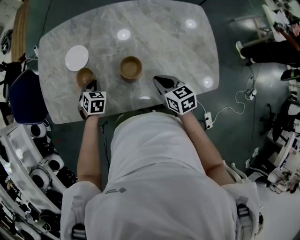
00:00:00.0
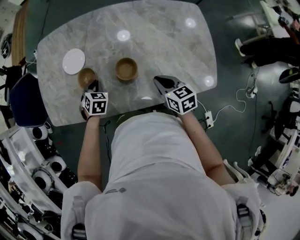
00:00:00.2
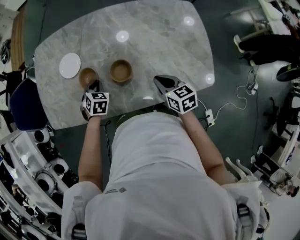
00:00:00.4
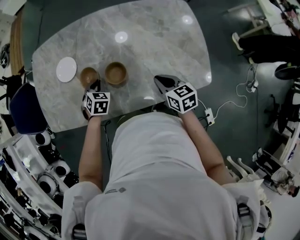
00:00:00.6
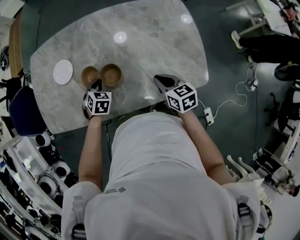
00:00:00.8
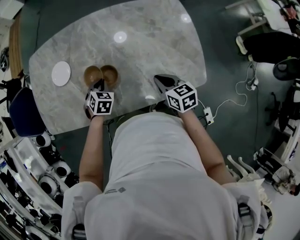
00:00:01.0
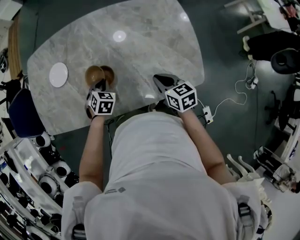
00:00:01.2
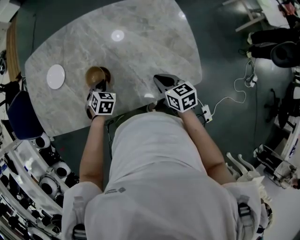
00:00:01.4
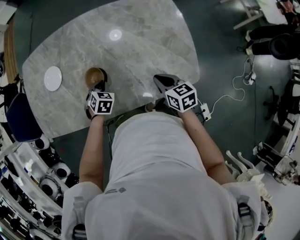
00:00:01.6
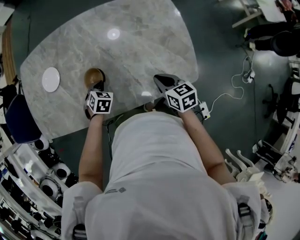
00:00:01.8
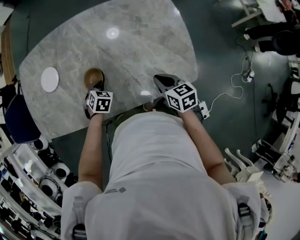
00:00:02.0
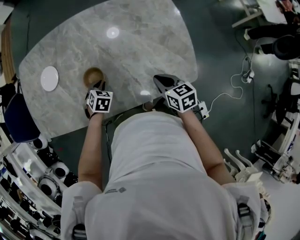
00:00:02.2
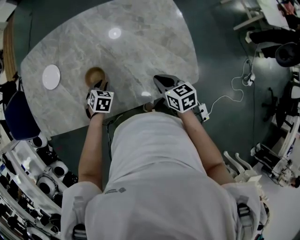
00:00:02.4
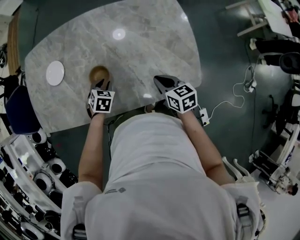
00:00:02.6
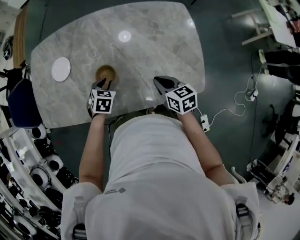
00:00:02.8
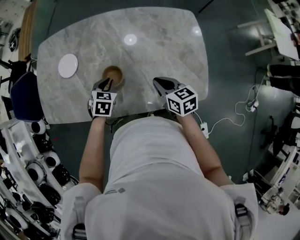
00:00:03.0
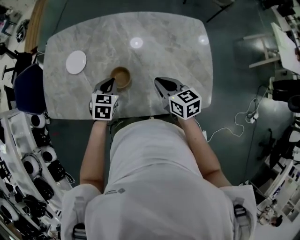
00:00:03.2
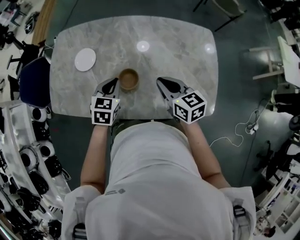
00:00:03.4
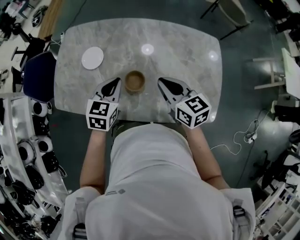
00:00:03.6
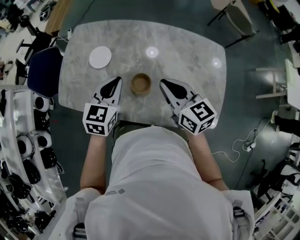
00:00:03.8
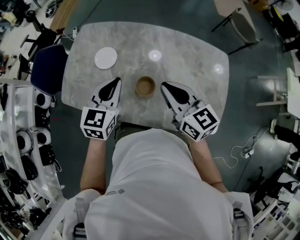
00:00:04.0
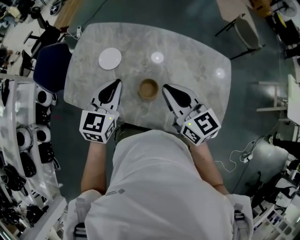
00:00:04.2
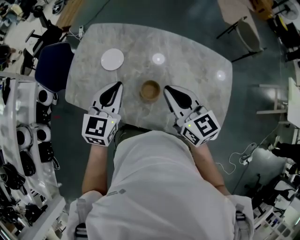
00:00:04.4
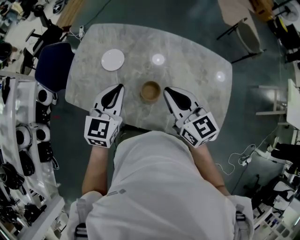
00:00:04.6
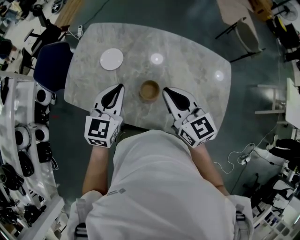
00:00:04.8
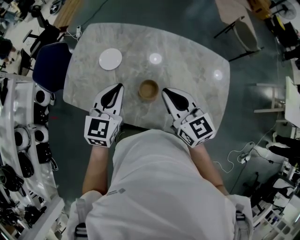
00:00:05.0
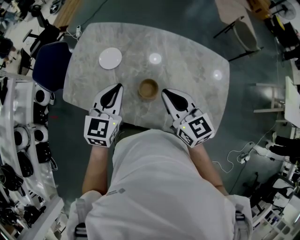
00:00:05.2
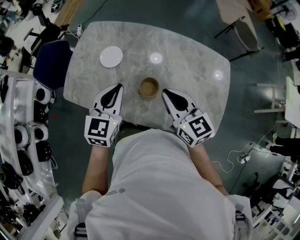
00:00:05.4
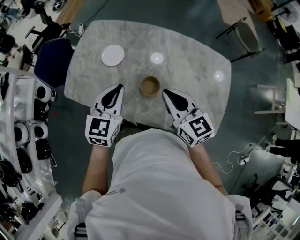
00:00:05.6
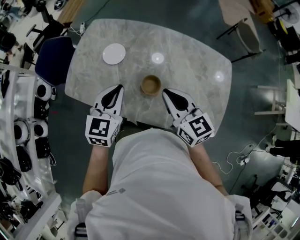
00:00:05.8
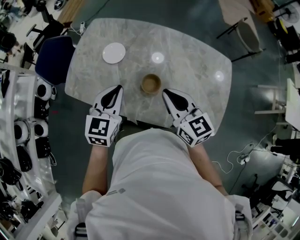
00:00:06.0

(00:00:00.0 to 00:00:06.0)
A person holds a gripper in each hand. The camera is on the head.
00:00:00.0 - 00:00:01.6: Both grippers travel together to the right, some 20 cm.
00:00:01.6 - 00:00:03.0: The left gripper heads upward, covering about 5 cm, while the right gripper moves to the left, some 5 cm.
00:00:03.0 - 00:00:04.4: The two grippers go about 25 cm upward and to the left. The right gripper turns by some 30 degrees. Meanwhile the left gripper tilts its fingers roughly 30 degrees upward.
00:00:04.4 - 00:00:06.0: The left gripper changes place by some 5 cm. Meanwhile the right gripper changes place by some 5 cm.

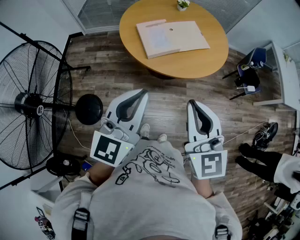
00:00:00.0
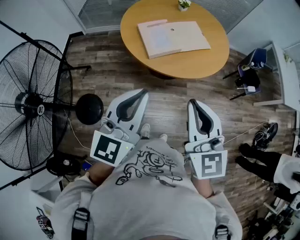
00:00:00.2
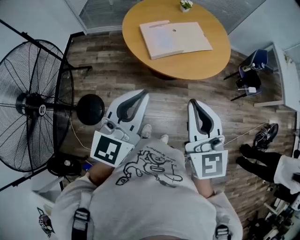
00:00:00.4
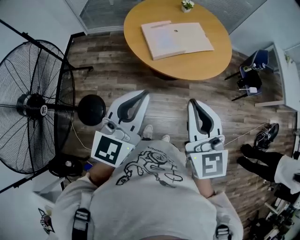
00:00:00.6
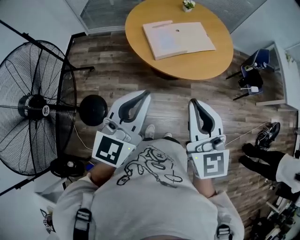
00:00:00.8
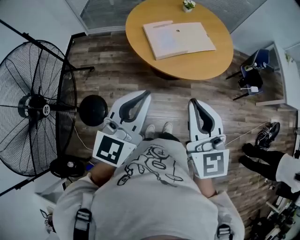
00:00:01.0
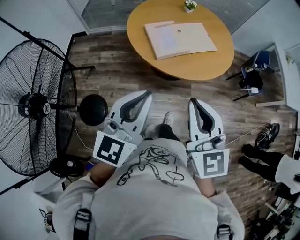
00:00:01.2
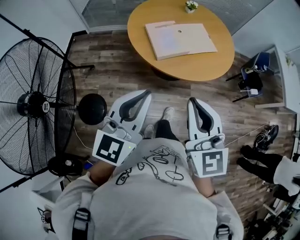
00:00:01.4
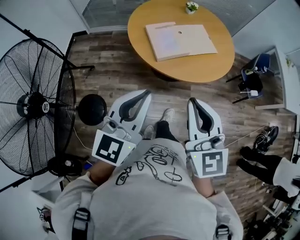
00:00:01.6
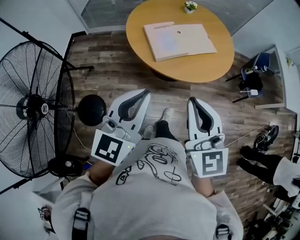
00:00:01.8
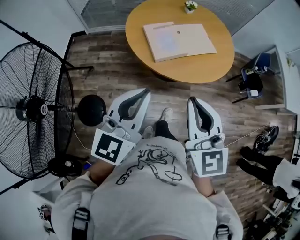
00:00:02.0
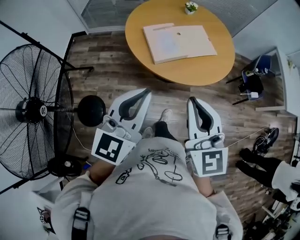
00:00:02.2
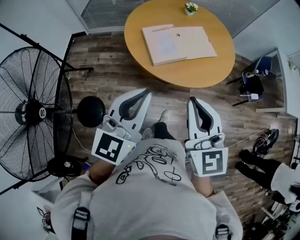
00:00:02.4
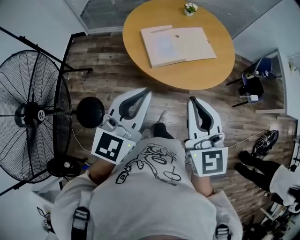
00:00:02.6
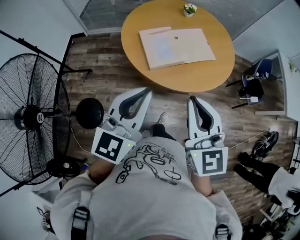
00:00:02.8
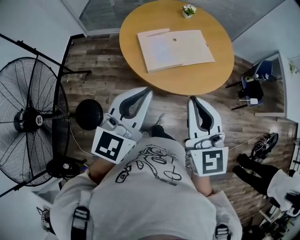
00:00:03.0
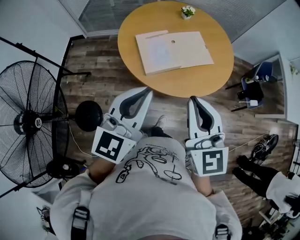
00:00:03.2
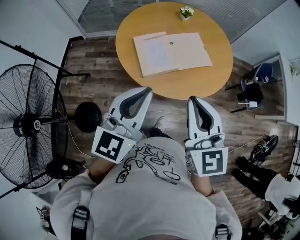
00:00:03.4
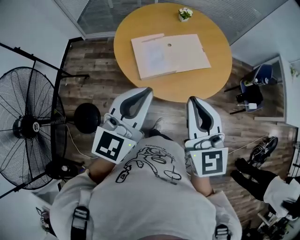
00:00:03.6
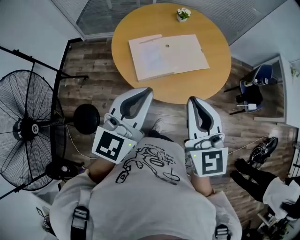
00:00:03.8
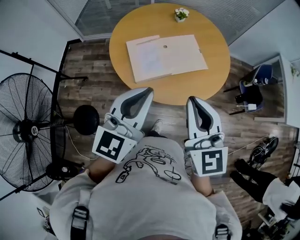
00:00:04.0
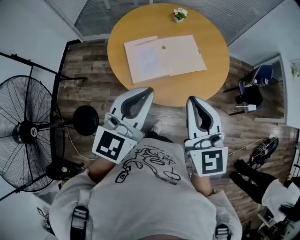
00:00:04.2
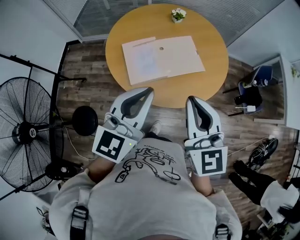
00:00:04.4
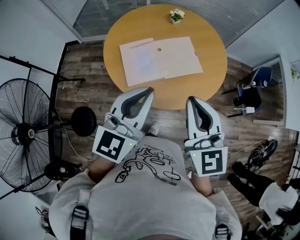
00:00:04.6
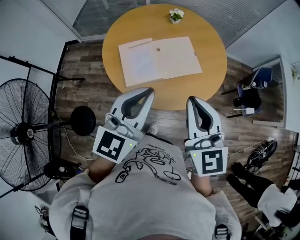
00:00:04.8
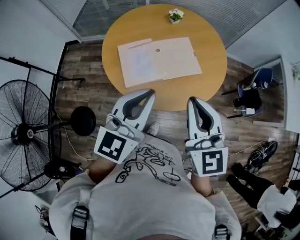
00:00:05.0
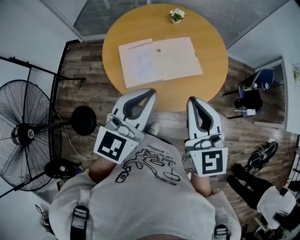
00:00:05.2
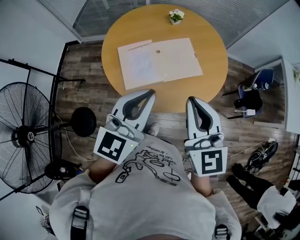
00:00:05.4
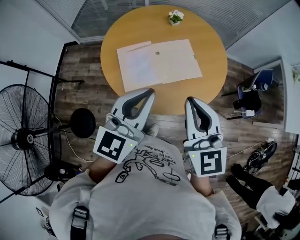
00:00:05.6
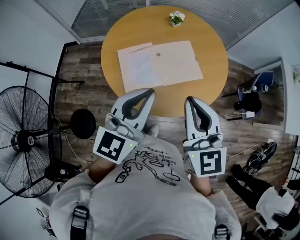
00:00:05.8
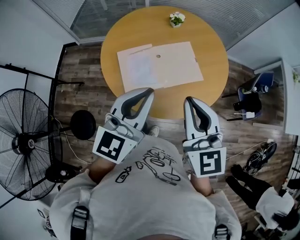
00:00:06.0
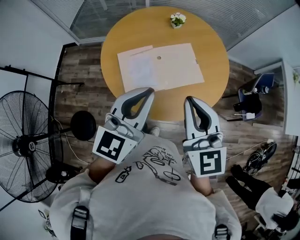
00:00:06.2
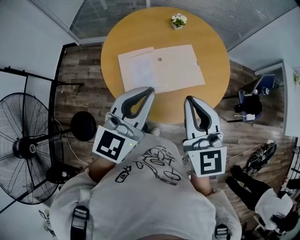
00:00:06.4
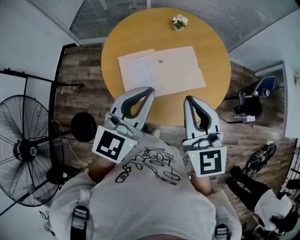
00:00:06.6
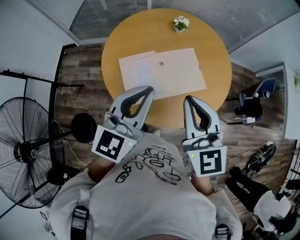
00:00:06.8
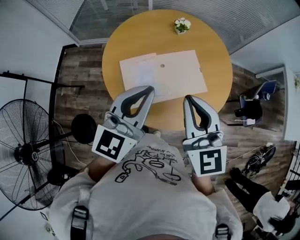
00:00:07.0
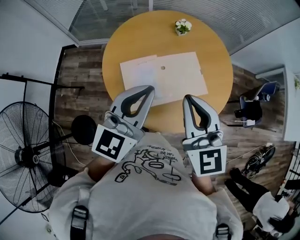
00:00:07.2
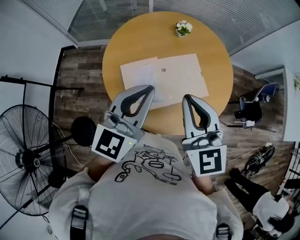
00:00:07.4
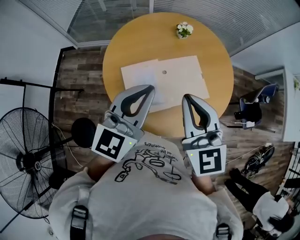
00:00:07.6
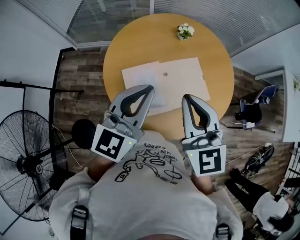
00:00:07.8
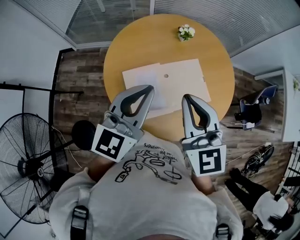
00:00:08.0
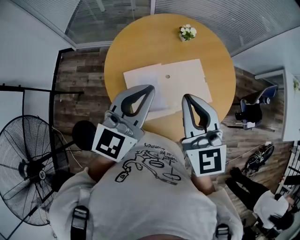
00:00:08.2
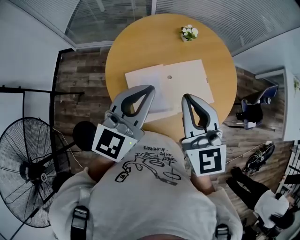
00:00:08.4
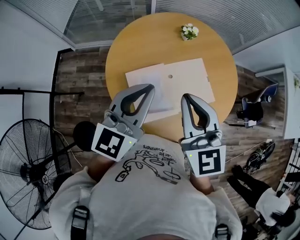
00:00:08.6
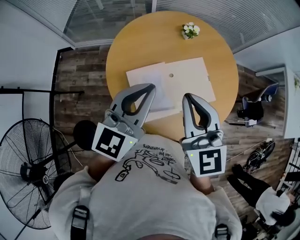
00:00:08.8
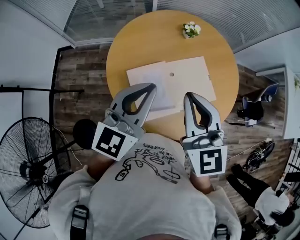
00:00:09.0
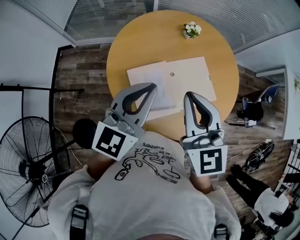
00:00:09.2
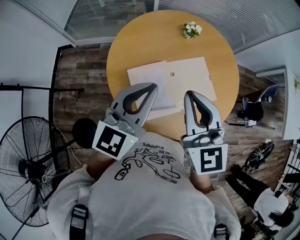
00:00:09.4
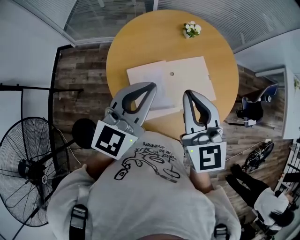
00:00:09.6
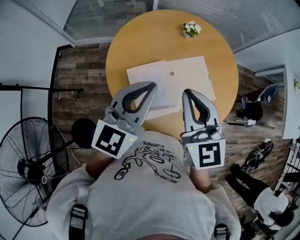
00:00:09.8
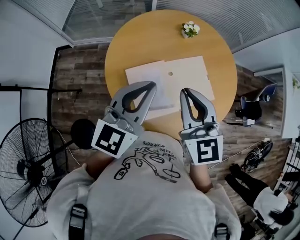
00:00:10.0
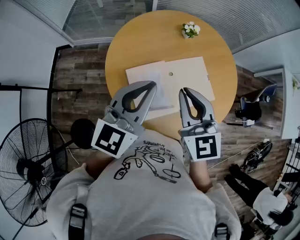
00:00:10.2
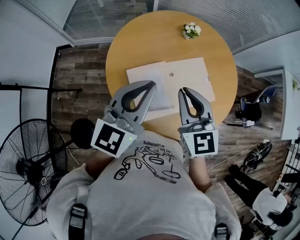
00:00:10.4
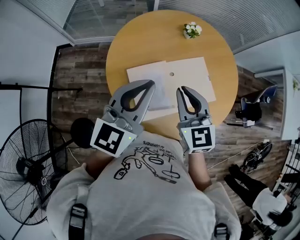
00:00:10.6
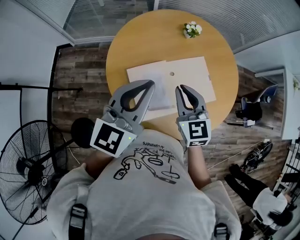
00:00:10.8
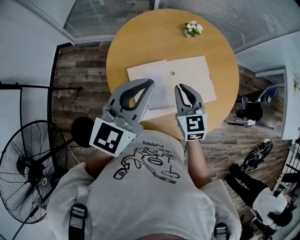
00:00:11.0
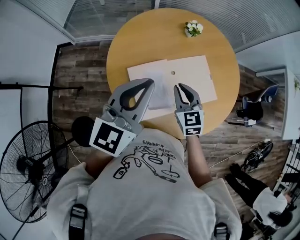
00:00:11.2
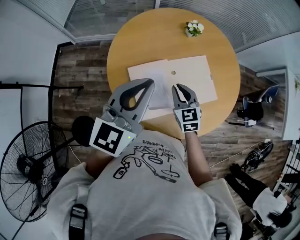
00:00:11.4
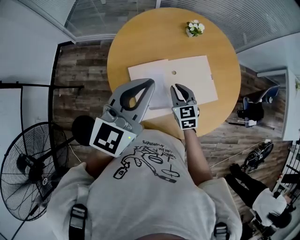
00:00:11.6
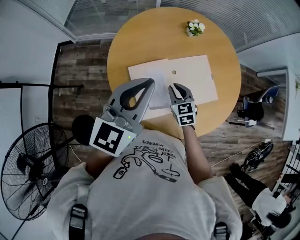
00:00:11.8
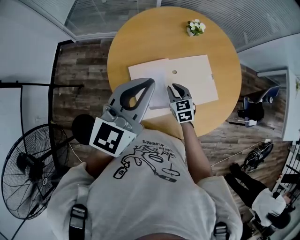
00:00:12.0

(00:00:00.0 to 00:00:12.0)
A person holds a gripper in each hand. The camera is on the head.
00:00:00.0 - 00:00:01.6: The two grippers go roughly 5 cm to the left.
00:00:01.6 - 00:00:03.0: The grippers both shift forward and to the right by about 15 cm.
00:00:03.0 - 00:00:04.4: Both grippers move forward and to the right, approximately 15 cm.
00:00:04.4 - 00:00:06.0: Both grippers move forward, roughly 10 cm.
00:00:06.0 - 00:00:07.6: The grippers both shift forward and to the left by approximately 20 cm.
00:00:07.6 - 00:00:09.0: The grippers both shift to the left by roughly 5 cm.
00:00:09.0 - 00:00:10.4: The right gripper travels downward by approximately 5 cm.
00:00:10.4 - 00:00:12.0: The right gripper is displaced downward by roughly 30 cm, and changes its angle by roughly 30 degrees.

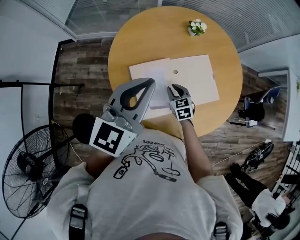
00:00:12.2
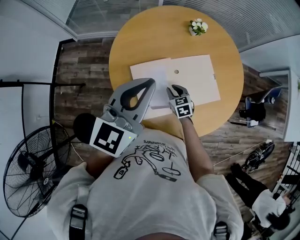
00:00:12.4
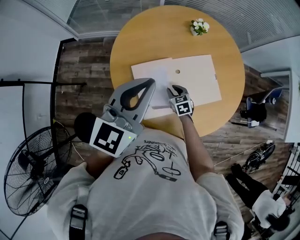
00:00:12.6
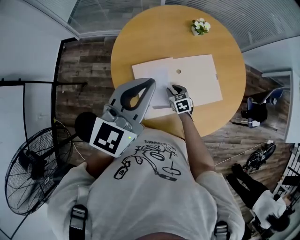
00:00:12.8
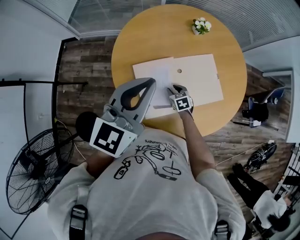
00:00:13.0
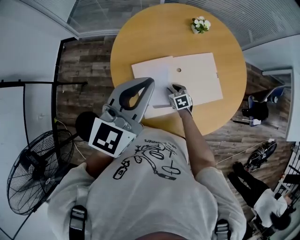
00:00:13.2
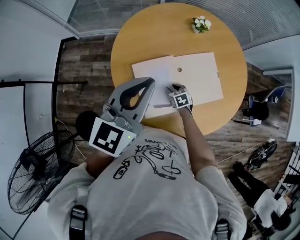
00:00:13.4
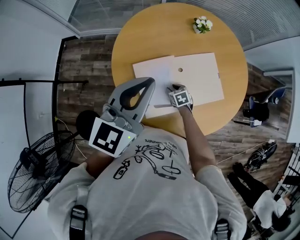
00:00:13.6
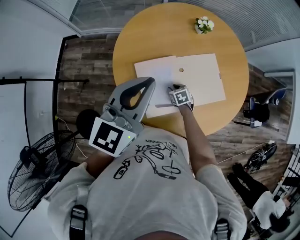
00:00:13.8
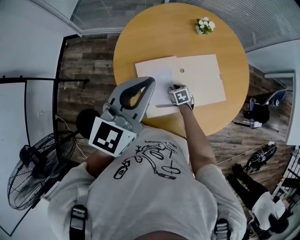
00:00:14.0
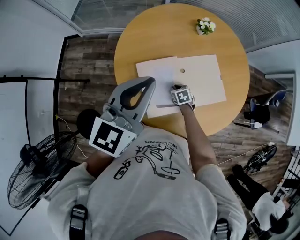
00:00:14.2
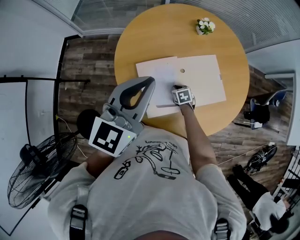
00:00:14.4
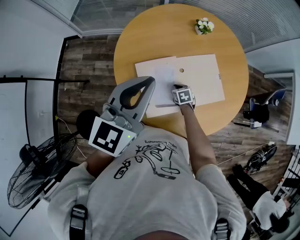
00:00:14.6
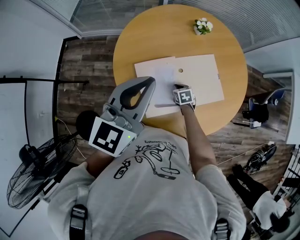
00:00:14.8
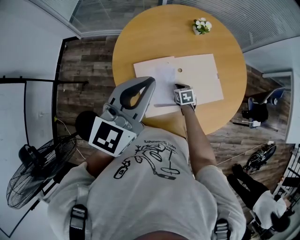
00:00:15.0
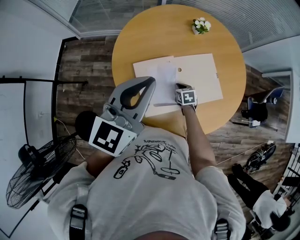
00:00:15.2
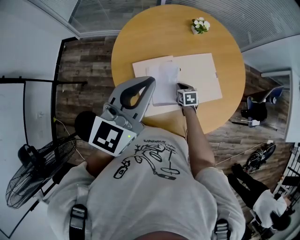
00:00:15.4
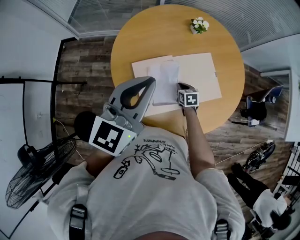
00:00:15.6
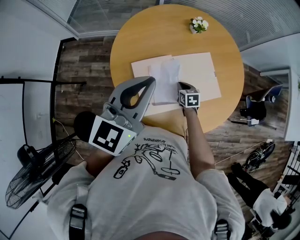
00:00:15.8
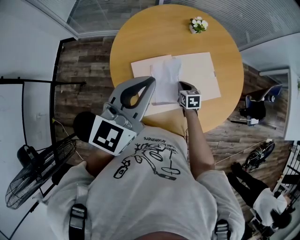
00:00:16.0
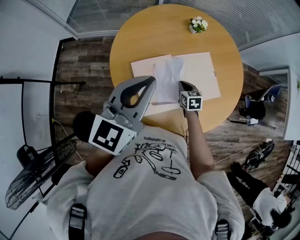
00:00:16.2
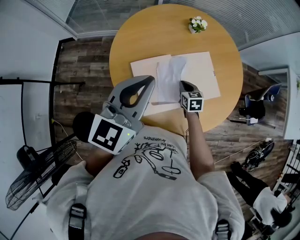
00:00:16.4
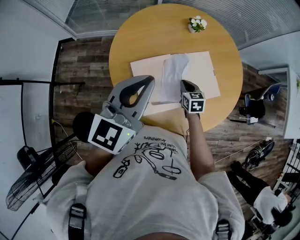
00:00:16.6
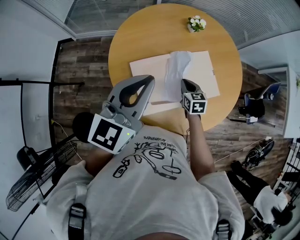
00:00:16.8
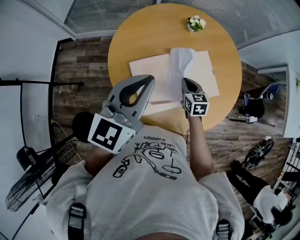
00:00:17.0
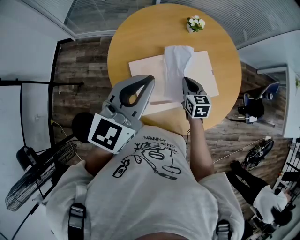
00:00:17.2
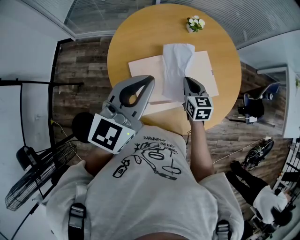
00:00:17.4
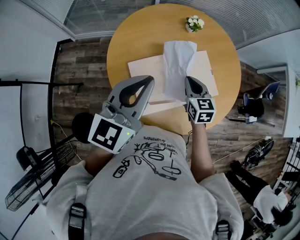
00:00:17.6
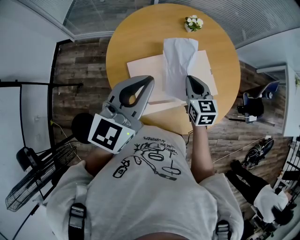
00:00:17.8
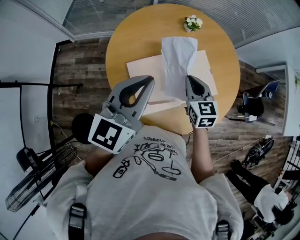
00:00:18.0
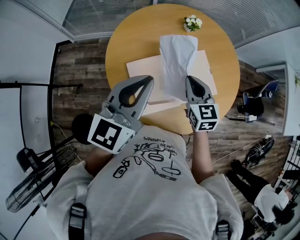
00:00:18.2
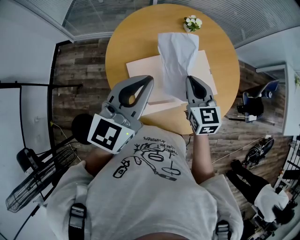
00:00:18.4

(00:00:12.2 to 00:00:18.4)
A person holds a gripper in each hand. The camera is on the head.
00:00:12.2 - 00:00:13.8: The right gripper travels downward by about 15 cm, and swivels about 20 degrees.
00:00:13.8 - 00:00:15.4: The right gripper changes place by about 5 cm, and closes up.
00:00:15.4 - 00:00:16.8: The right gripper heads upward, covering roughly 10 cm.
00:00:16.8 - 00:00:18.4: The right gripper travels upward by approximately 20 cm.
